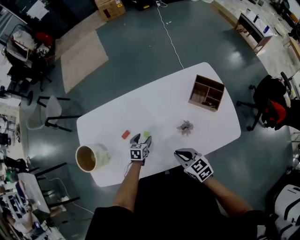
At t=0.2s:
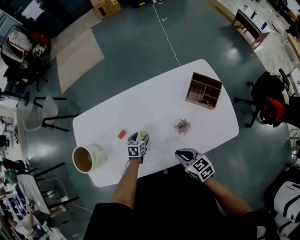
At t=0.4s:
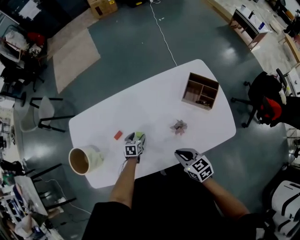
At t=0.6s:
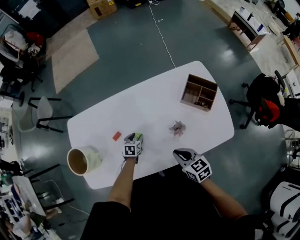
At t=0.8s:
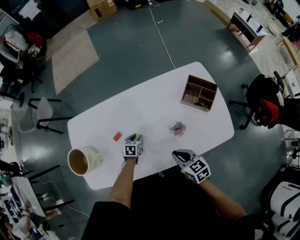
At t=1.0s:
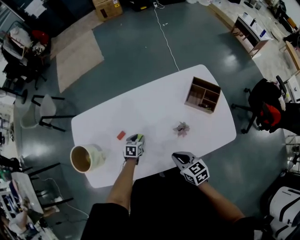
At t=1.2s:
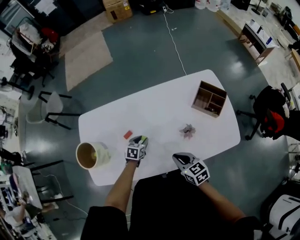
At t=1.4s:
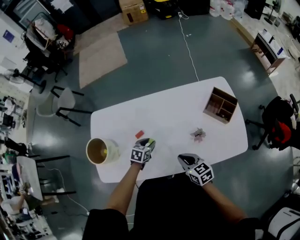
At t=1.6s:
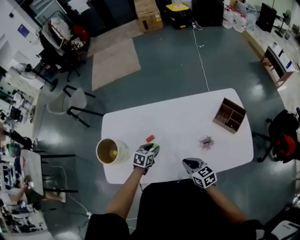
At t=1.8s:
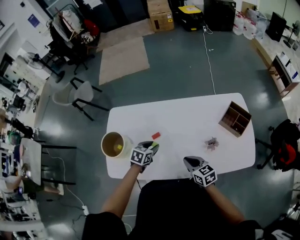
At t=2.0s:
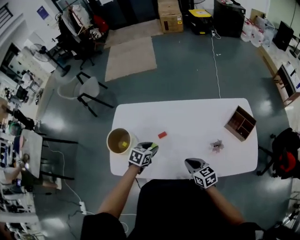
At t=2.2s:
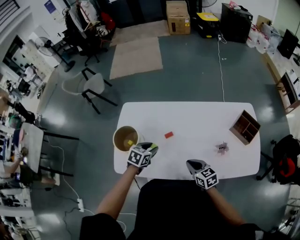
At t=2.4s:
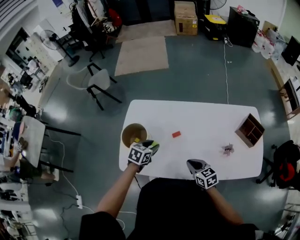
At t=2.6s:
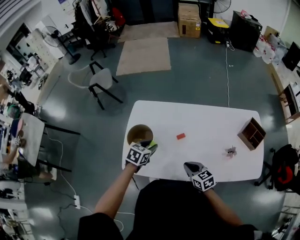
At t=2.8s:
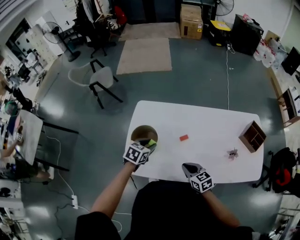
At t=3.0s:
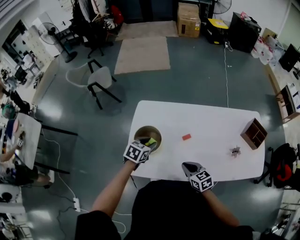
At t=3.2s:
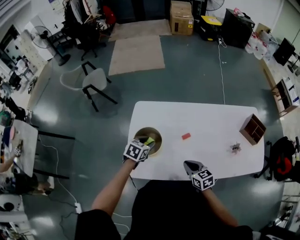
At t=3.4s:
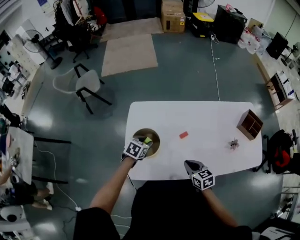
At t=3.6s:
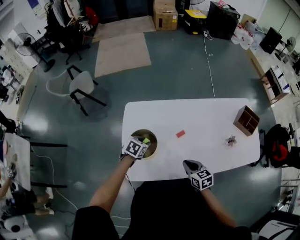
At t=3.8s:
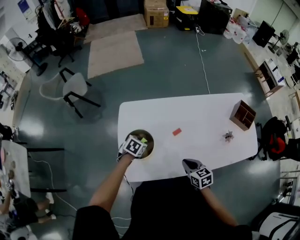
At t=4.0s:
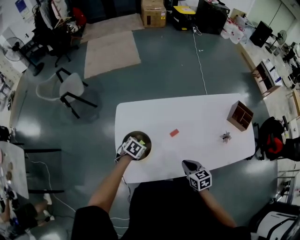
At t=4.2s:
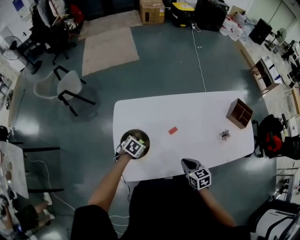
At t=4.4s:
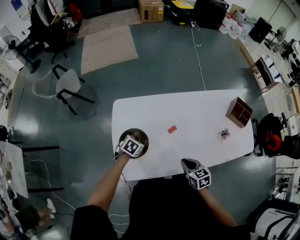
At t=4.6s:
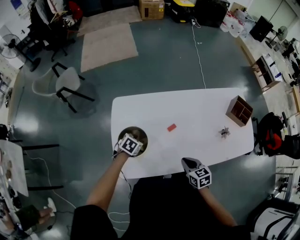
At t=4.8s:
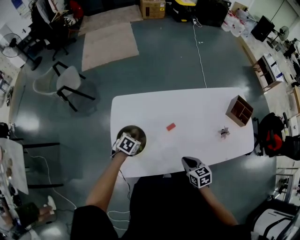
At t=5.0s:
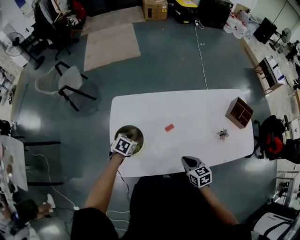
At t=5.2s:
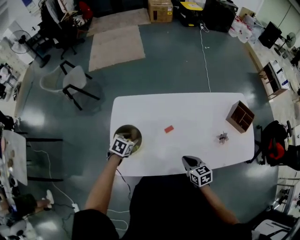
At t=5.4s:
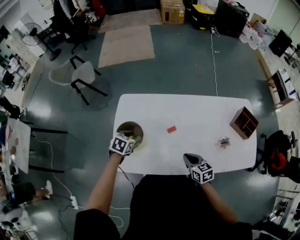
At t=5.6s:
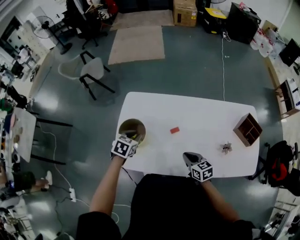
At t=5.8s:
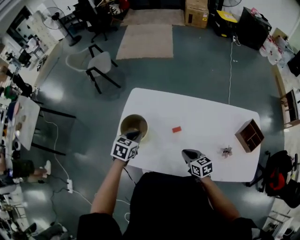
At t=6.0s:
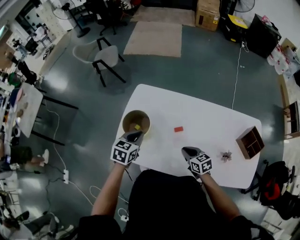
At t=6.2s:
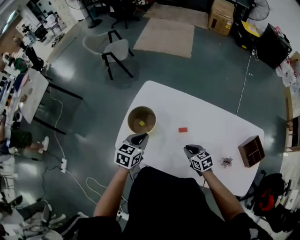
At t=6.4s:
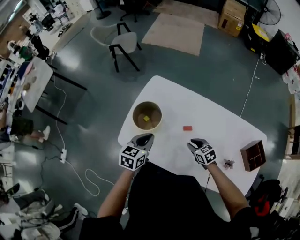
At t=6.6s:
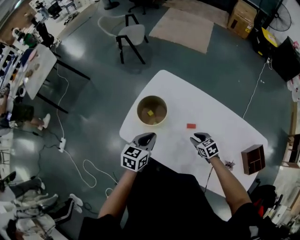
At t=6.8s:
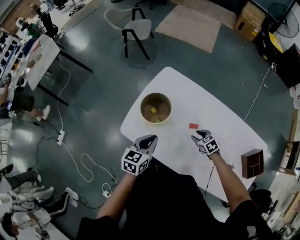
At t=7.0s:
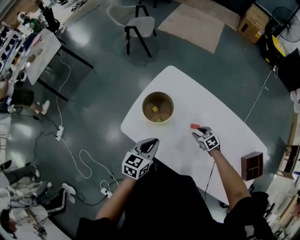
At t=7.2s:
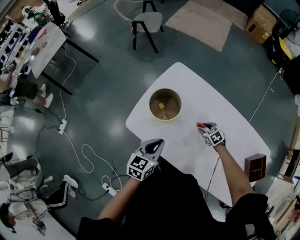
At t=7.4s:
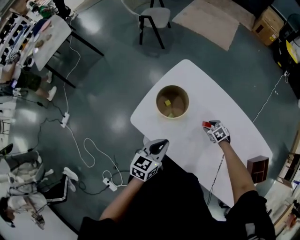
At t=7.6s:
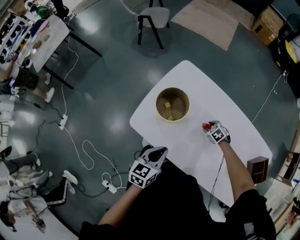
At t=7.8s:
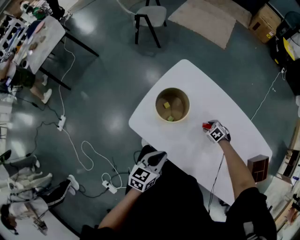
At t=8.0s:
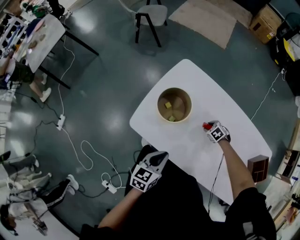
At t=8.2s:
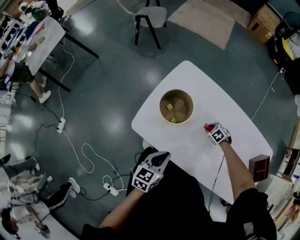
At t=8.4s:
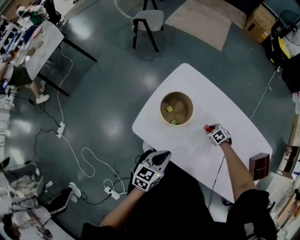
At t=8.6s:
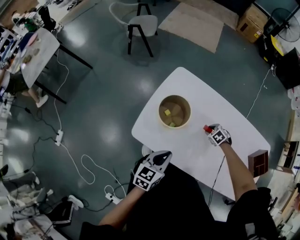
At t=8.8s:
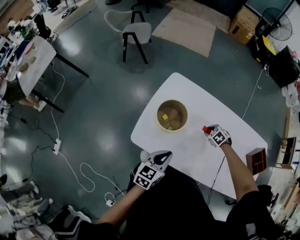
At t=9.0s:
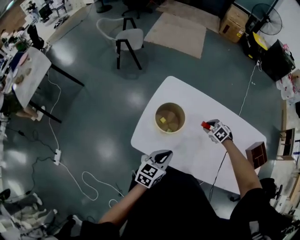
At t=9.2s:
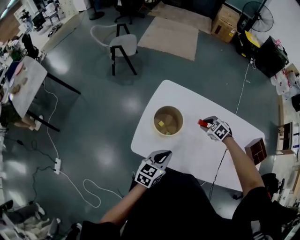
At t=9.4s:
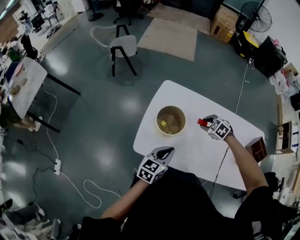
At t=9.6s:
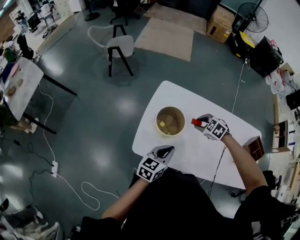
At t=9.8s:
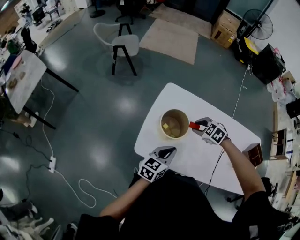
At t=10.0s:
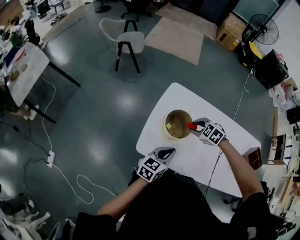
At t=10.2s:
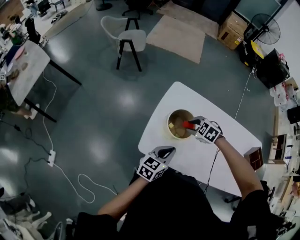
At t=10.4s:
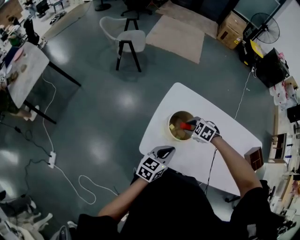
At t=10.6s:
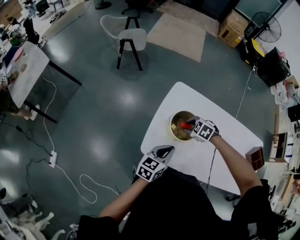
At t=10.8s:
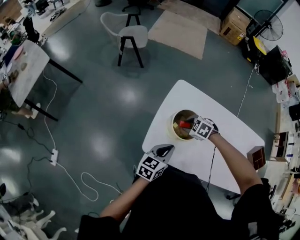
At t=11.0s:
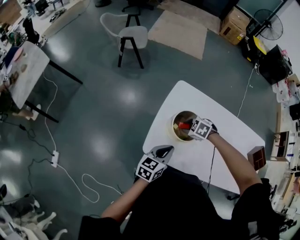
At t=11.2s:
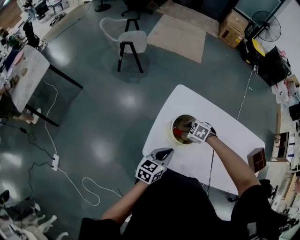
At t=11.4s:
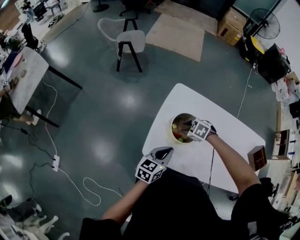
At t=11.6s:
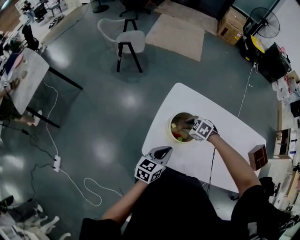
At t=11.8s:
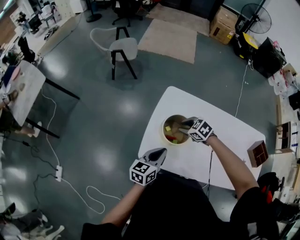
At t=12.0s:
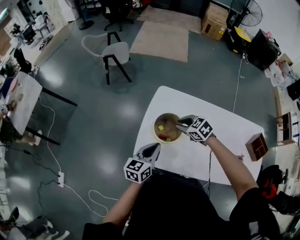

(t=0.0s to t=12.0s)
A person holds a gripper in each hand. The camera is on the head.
t=0.0s - t=1.6s: The left gripper goes some 10 cm upward and to the left, and closes its fingers; the right gripper shifts about 5 cm to the left.
t=1.6s - t=3.0s: Both grippers travel together to the left, roughly 25 cm.
t=3.0s - t=4.4s: The right gripper rotates about 20 degrees. Meanwhile the left gripper shifts approximately 10 cm downward, and swivels roughly 20 degrees.
t=4.4s - t=6.0s: The left gripper moves upward, roughly 15 cm, changes its angle by some 40 degrees, and closes, while the right gripper changes place by roughly 10 cm, and swivels some 30 degrees.
t=6.0s - t=7.6s: The left gripper is displaced backward and to the left by roughly 15 cm, and turns by roughly 30 degrees. The right gripper shifts roughly 20 cm downward and forward, points its fingers some 30 degrees further downward, and opens up.
t=7.6s - t=9.0s: The right gripper is displaced upward by about 10 cm.
t=9.0s - t=10.4s: The right gripper moves to the left, roughly 20 cm. The left gripper shifts some 5 cm to the left.
t=10.4s - t=12.0s: The right gripper is displaced upward by roughly 5 cm, and changes its angle by approximately 30 degrees.

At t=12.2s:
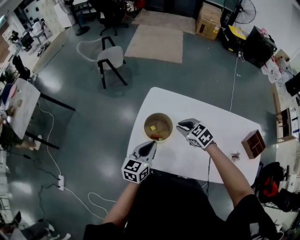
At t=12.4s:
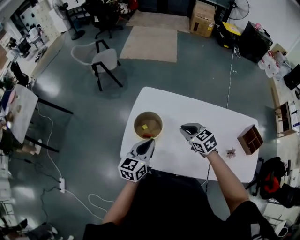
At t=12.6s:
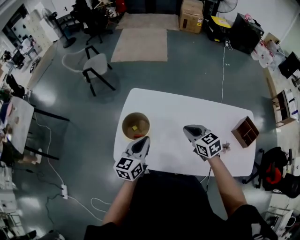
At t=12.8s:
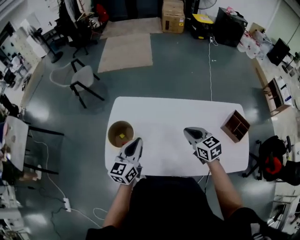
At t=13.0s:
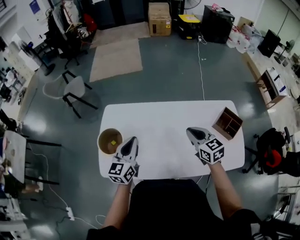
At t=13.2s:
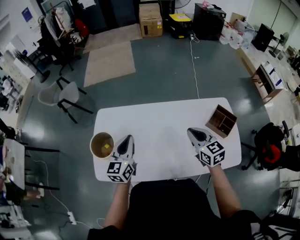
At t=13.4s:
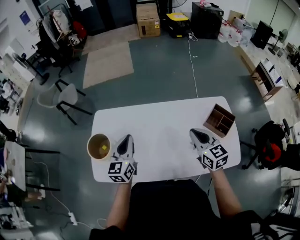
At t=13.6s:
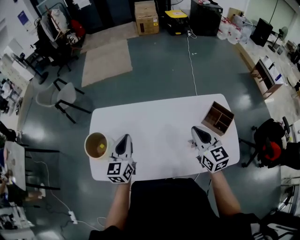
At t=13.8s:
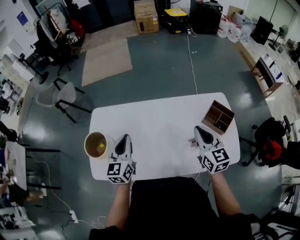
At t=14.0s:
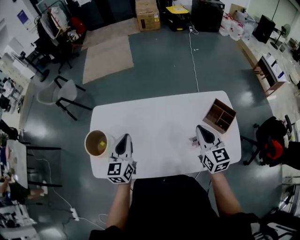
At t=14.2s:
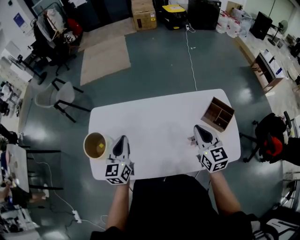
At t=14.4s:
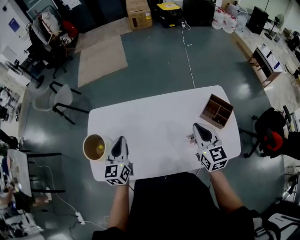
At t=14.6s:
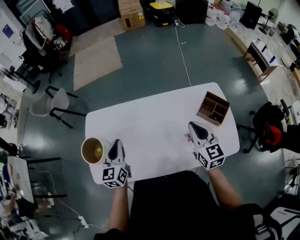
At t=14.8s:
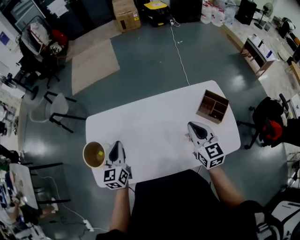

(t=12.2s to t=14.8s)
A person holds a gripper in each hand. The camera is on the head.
t=12.2s - t=13.4s: The right gripper travels to the right by some 40 cm, and turns by about 50 degrees. The left gripper moves to the right, about 25 cm.
t=13.4s - t=14.8s: There are only small adjustments of the grippers.

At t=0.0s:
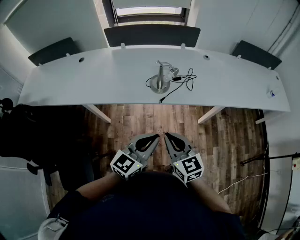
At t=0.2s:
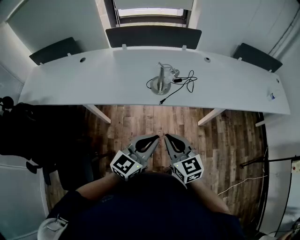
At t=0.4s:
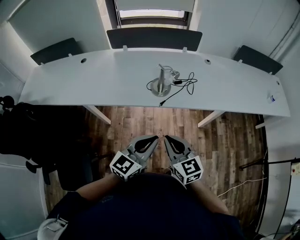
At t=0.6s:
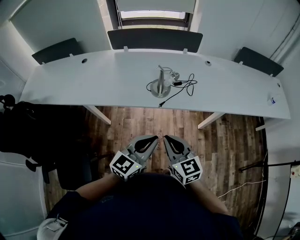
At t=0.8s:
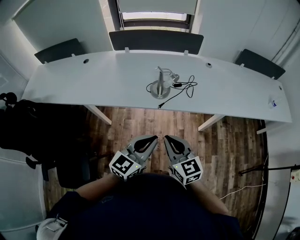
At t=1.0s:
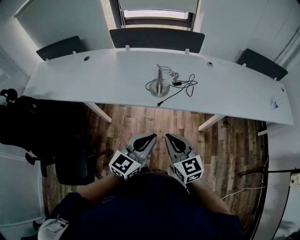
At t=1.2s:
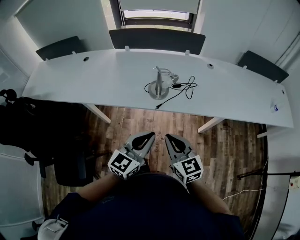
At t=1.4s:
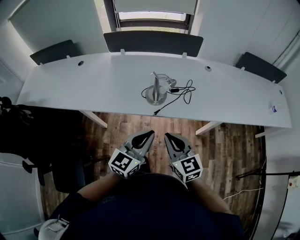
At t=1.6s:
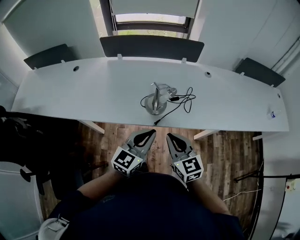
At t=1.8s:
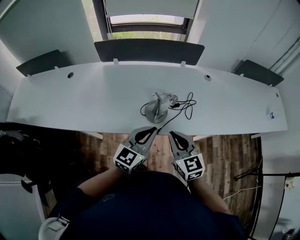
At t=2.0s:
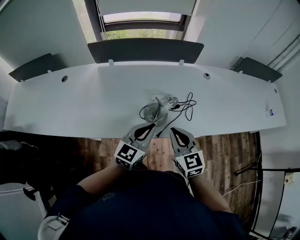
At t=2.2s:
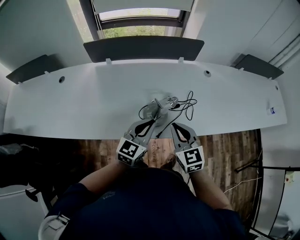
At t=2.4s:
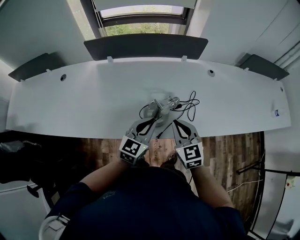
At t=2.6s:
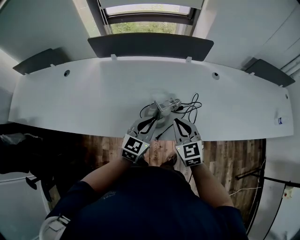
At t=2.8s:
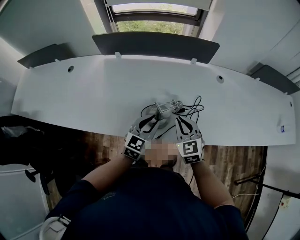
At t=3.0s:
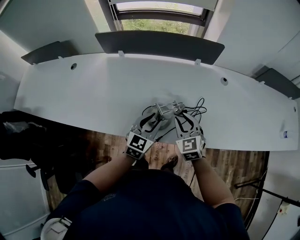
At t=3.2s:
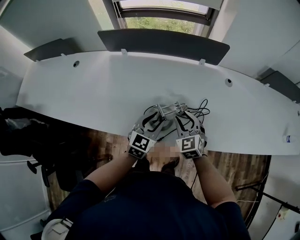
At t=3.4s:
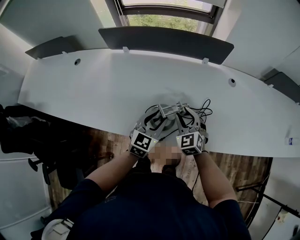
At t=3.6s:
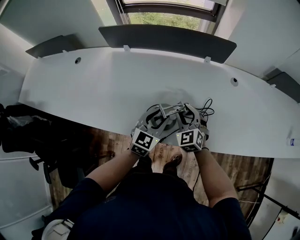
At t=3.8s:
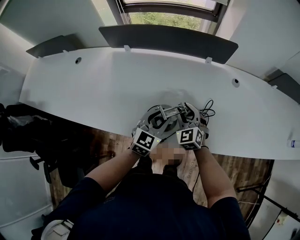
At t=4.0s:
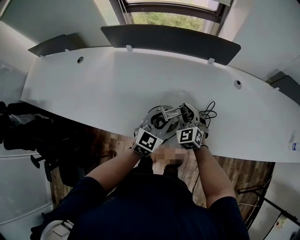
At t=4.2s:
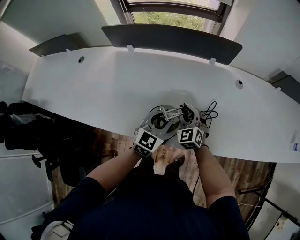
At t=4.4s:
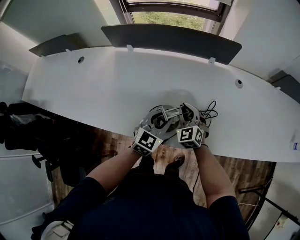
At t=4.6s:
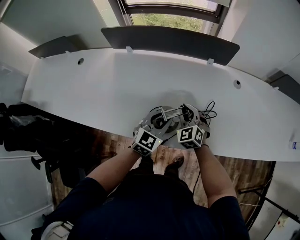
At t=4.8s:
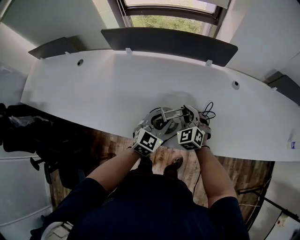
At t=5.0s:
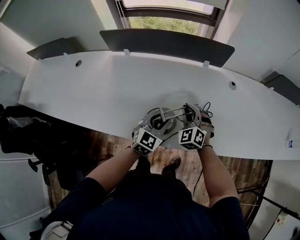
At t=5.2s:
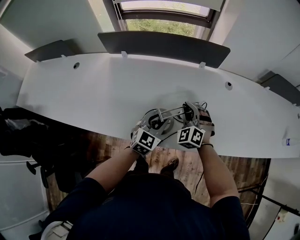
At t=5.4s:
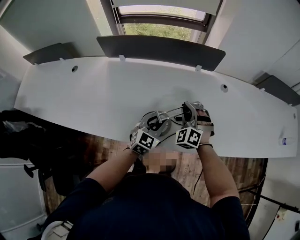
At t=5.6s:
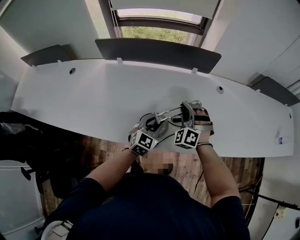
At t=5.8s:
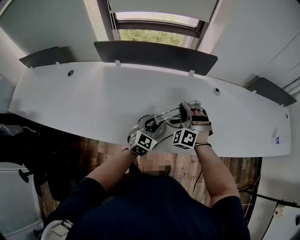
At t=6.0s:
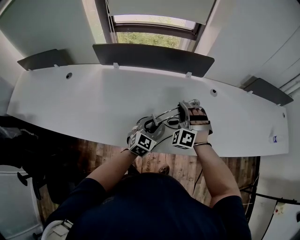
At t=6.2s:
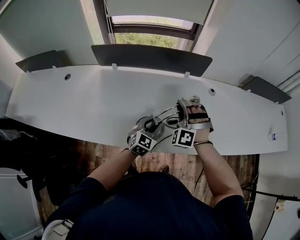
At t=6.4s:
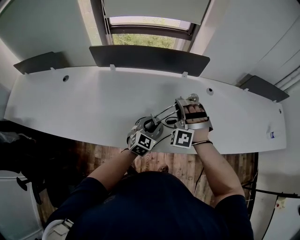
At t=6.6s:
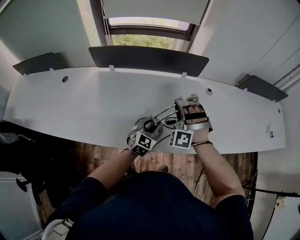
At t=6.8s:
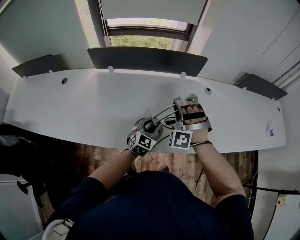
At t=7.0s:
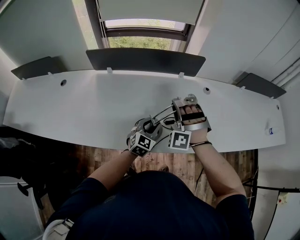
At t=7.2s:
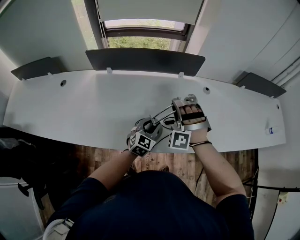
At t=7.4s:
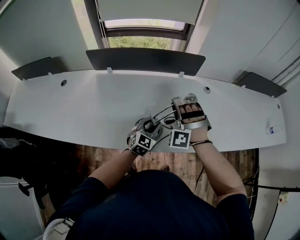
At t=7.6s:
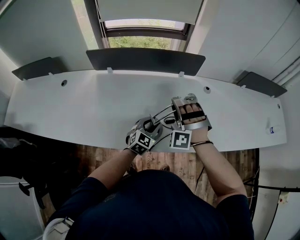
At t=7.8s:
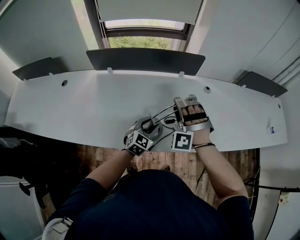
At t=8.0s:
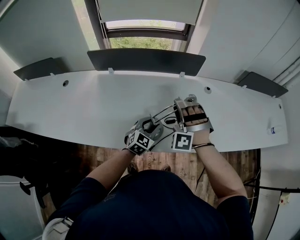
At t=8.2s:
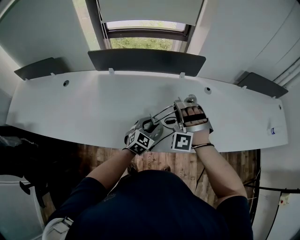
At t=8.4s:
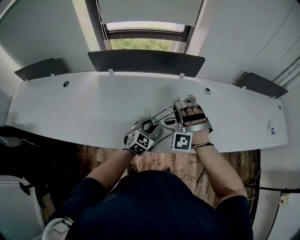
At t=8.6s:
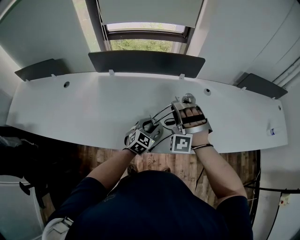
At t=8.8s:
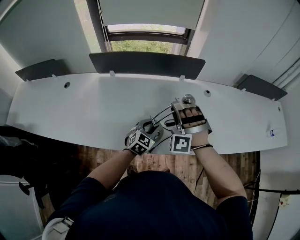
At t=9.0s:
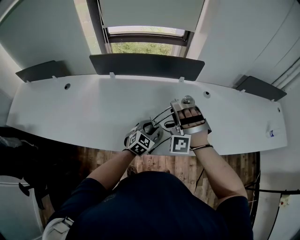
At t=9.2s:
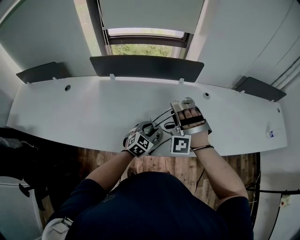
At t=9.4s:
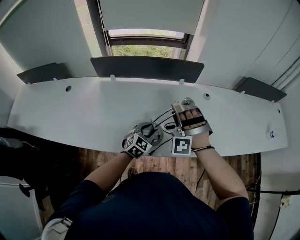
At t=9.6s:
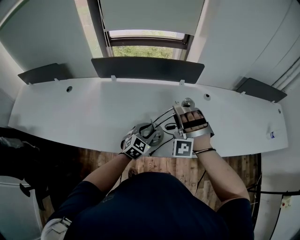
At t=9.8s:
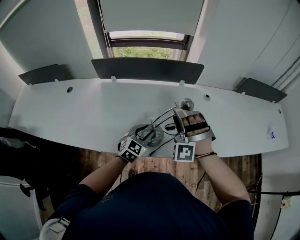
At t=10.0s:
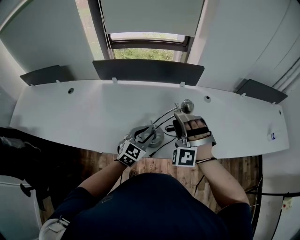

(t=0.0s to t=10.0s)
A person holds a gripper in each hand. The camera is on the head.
t=0.0s - t=1.4s: The two grippers go some 10 cm forward.
t=1.4s - t=2.8s: The grippers both shift forward by approximately 30 cm.
t=2.8s - t=4.2s: The left gripper heads forward, covering about 5 cm, while the right gripper is displaced forward and downward by approximately 15 cm.
t=4.2s - t=5.8s: The right gripper is displaced upward by about 10 cm, and turns by roughly 40 degrees.
t=5.8s - t=7.2s: The right gripper is displaced upward by approximately 5 cm.
t=7.2s - t=8.6s: The right gripper opens and closes again.
t=8.6s - t=10.0s: The right gripper shifts by approximately 5 cm. The left gripper is displaced upward by roughly 5 cm.
